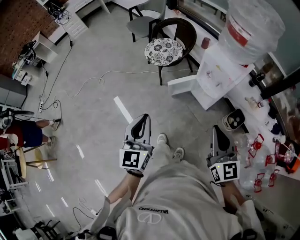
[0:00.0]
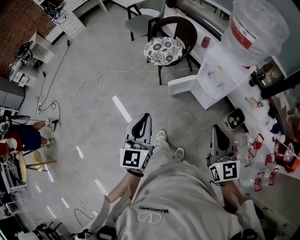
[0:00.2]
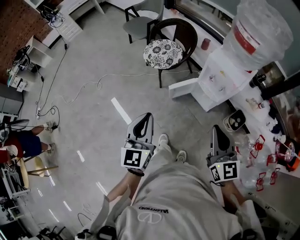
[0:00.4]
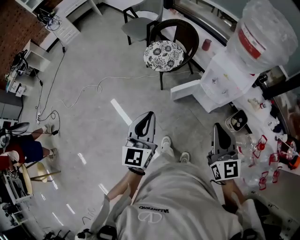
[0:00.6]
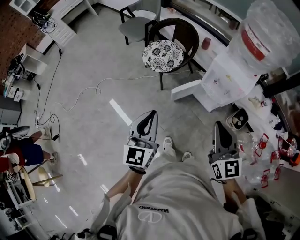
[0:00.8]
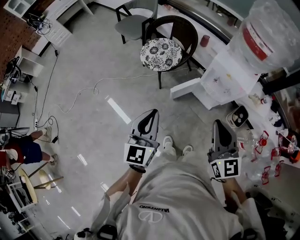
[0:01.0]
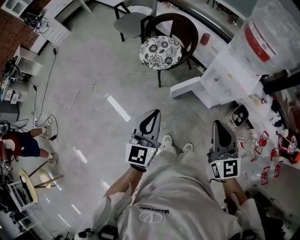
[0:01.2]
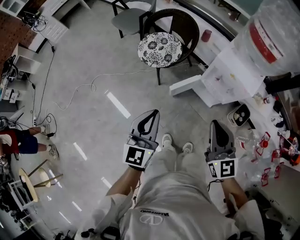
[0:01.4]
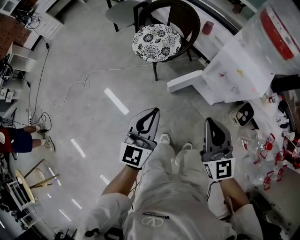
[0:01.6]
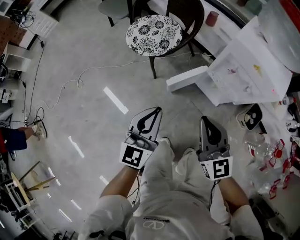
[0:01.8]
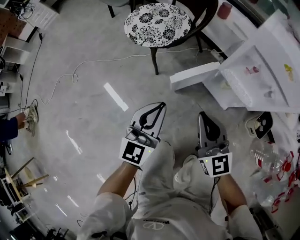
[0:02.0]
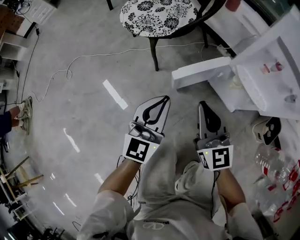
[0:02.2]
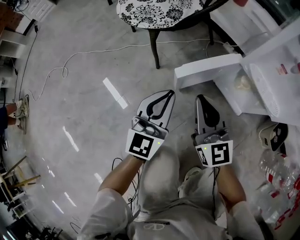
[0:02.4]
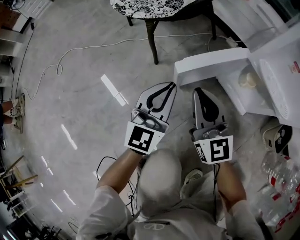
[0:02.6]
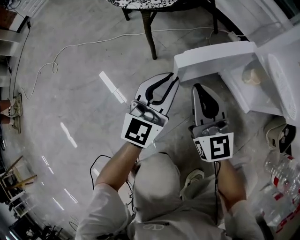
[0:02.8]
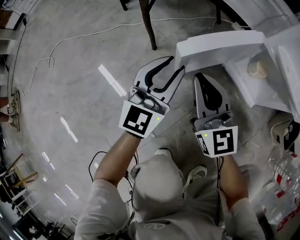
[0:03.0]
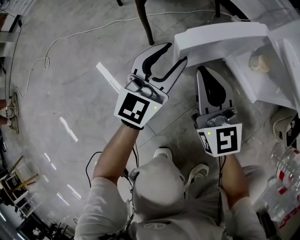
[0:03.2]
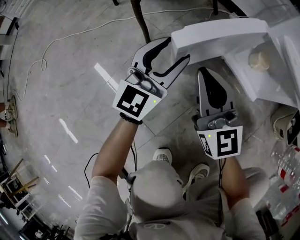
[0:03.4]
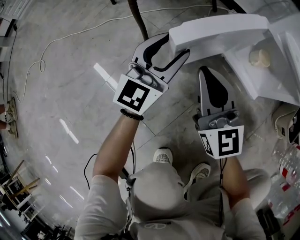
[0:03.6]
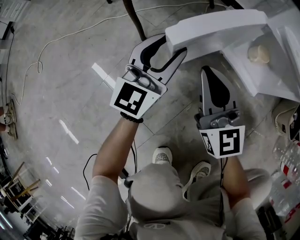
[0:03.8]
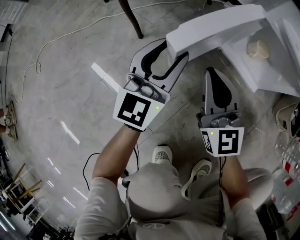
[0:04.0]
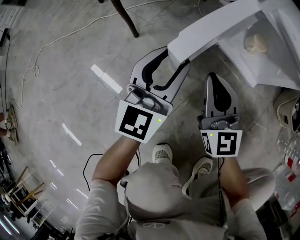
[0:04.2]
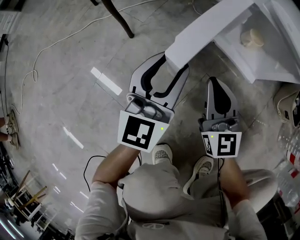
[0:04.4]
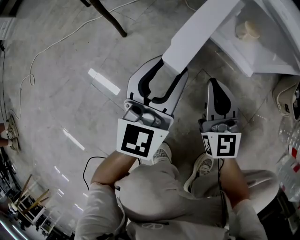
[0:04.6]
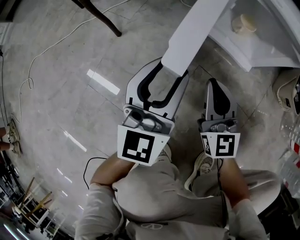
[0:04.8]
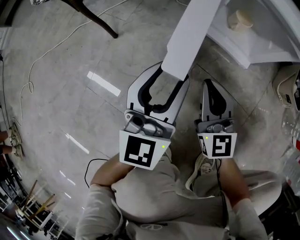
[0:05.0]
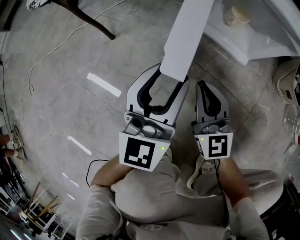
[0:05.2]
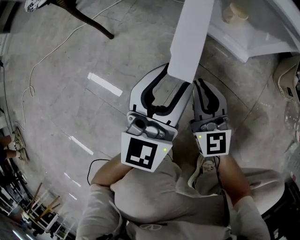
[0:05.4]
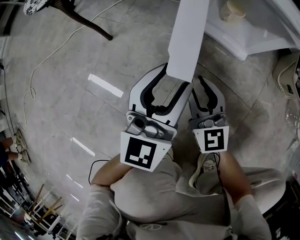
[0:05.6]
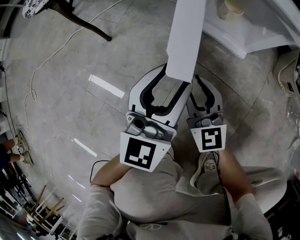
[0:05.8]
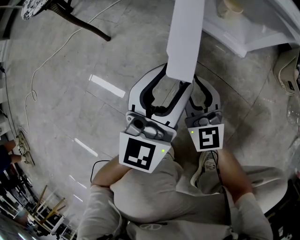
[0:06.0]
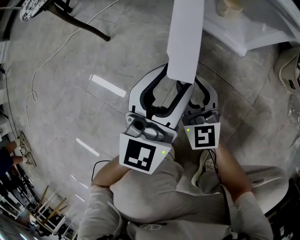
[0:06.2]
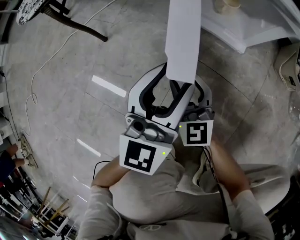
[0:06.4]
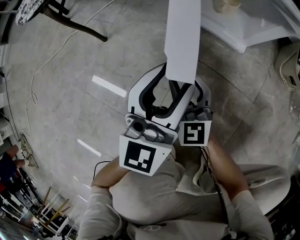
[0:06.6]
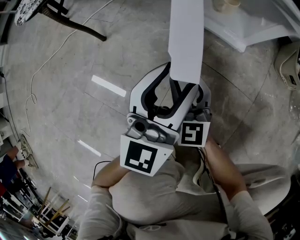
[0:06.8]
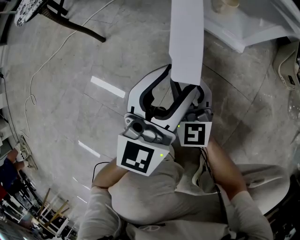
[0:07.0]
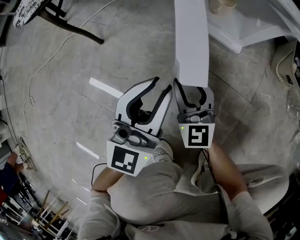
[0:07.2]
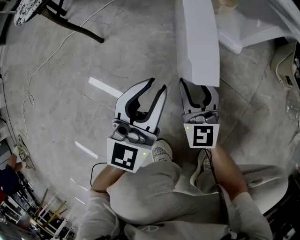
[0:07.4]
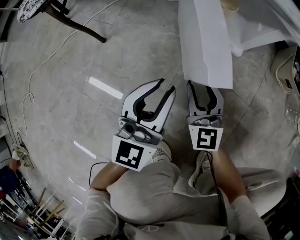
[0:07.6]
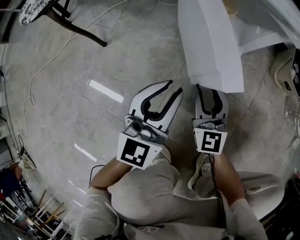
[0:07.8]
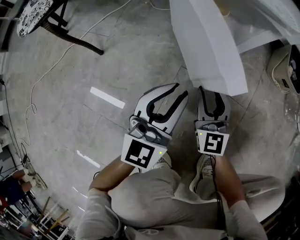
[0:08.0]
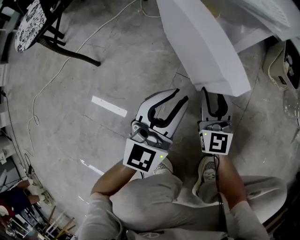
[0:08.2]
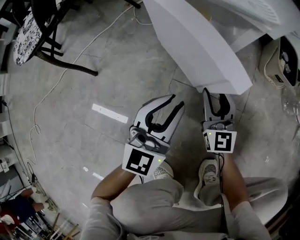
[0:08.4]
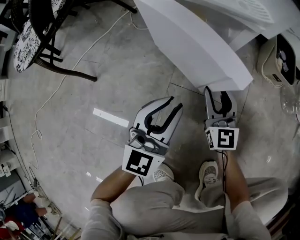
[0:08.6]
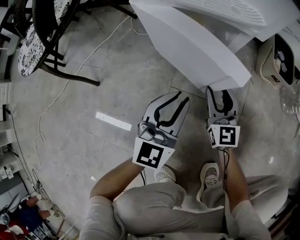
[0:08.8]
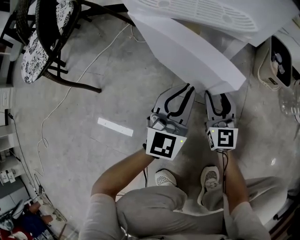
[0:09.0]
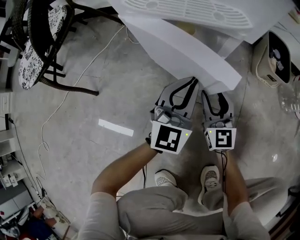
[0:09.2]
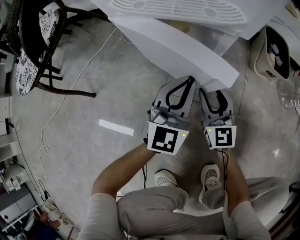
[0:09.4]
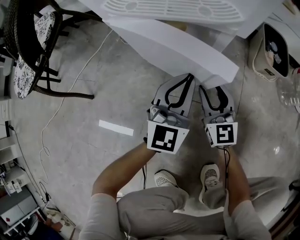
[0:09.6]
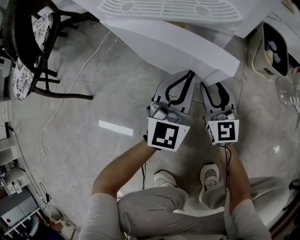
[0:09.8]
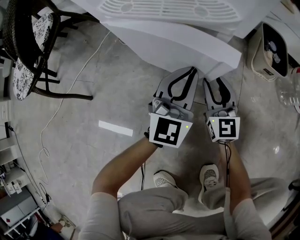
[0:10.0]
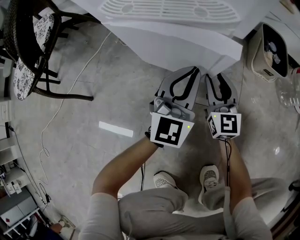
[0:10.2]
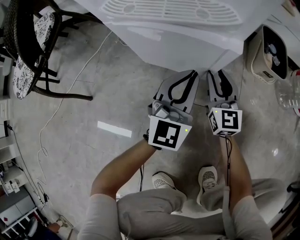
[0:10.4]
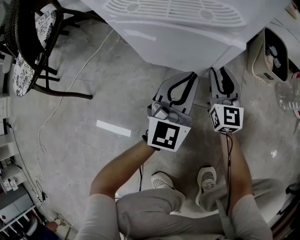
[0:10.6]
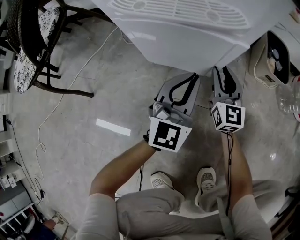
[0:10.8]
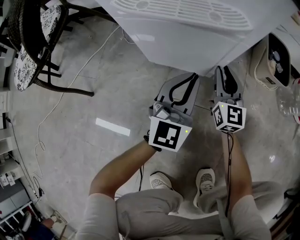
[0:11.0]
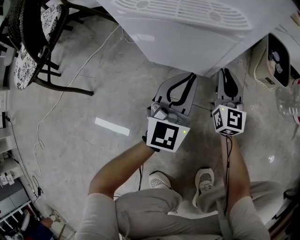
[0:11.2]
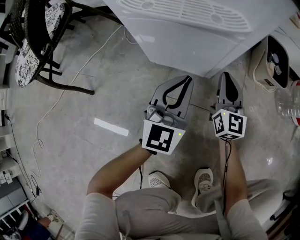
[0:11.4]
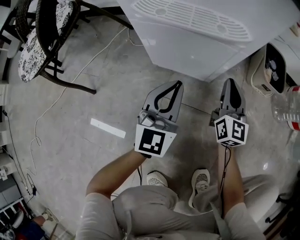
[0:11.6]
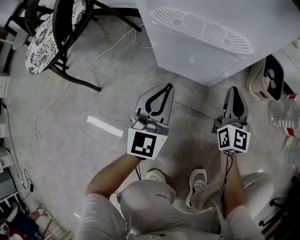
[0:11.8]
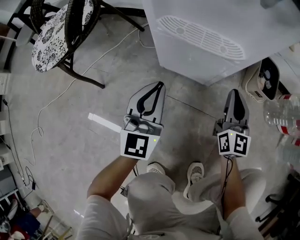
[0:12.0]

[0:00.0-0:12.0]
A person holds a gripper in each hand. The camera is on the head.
0:00.0 to 0:01.6: The left gripper shifts roughly 25 cm forward and downward, and changes its angle by about 20 degrees. Meanwhile the right gripper is displaced forward, downward and to the left by roughly 25 cm.
0:01.6 to 0:03.0: Both grippers move downward, about 60 cm. The left gripper opens its fingers.
0:03.0 to 0:04.4: The left gripper travels to the right by roughly 5 cm, while the right gripper moves to the right and downward, roughly 15 cm.
0:04.4 to 0:06.0: The right gripper shifts approximately 5 cm downward, and opens its fingers. The left gripper is displaced to the right by approximately 10 cm.
0:06.0 to 0:07.6: The left gripper closes its fingers.
0:07.6 to 0:09.0: The left gripper shifts some 15 cm forward and to the right, while the right gripper shifts approximately 15 cm to the right and forward.
0:09.0 to 0:10.4: The right gripper travels forward by about 5 cm; the left gripper heads forward and to the right, covering roughly 5 cm.
0:10.4 to 0:12.0: The left gripper goes some 20 cm to the left, upward and backward; the right gripper shifts roughly 15 cm upward, and closes its fingers.

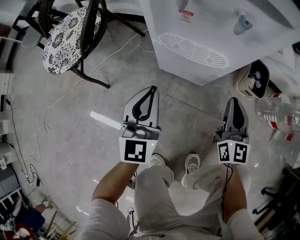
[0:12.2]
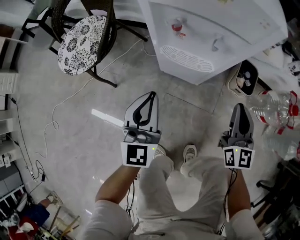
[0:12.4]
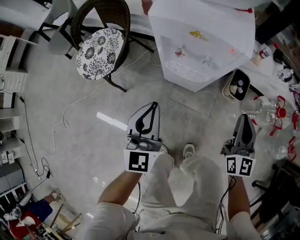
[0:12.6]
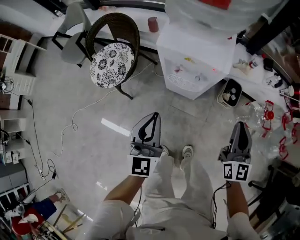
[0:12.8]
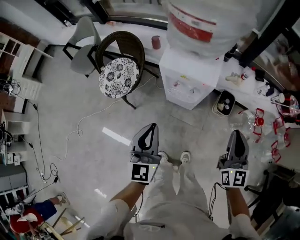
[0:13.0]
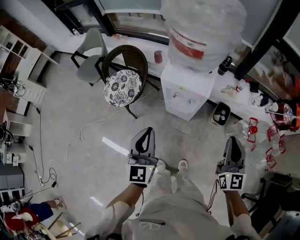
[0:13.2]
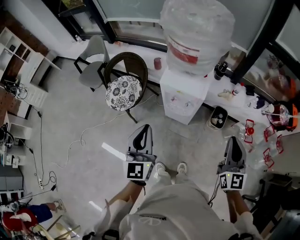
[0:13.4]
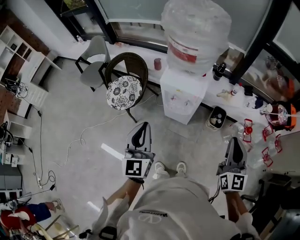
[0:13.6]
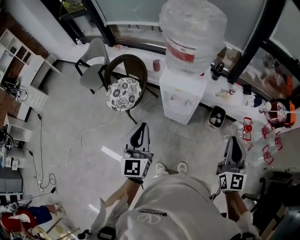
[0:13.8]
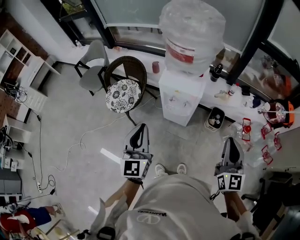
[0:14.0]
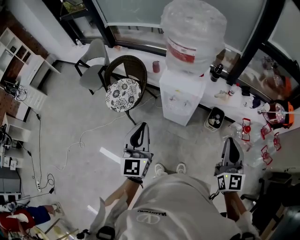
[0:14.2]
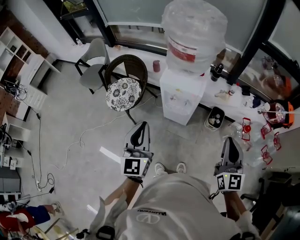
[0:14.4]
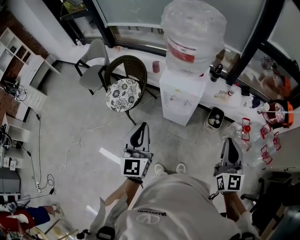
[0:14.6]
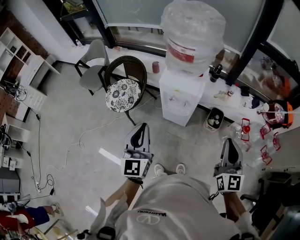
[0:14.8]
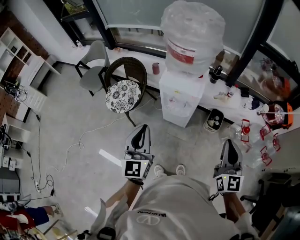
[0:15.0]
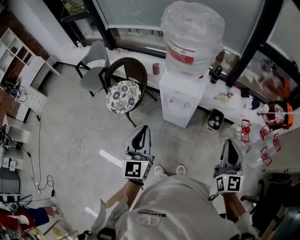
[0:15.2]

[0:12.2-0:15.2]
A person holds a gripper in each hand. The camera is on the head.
0:12.2 to 0:13.8: The two grippers go some 60 cm upward.
0:13.8 to 0:15.2: The grippers stay close to where they were, moving slightly.

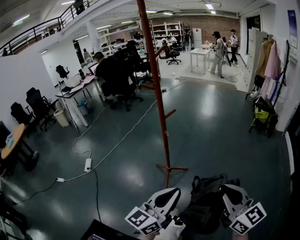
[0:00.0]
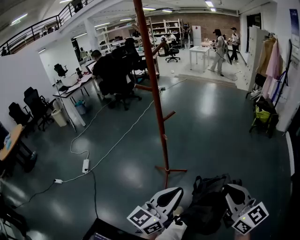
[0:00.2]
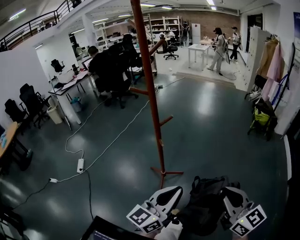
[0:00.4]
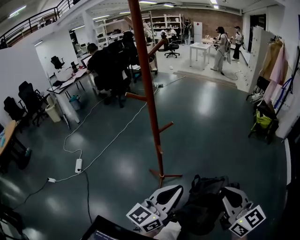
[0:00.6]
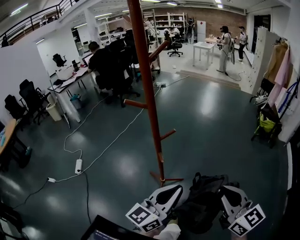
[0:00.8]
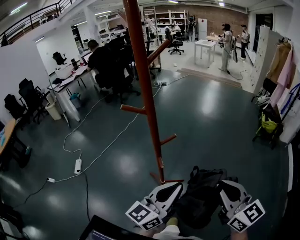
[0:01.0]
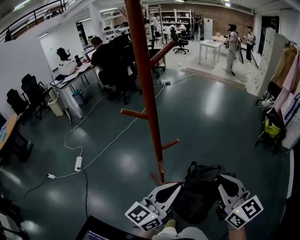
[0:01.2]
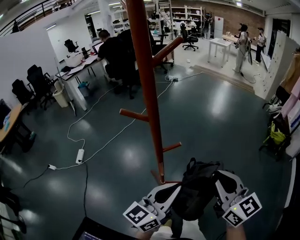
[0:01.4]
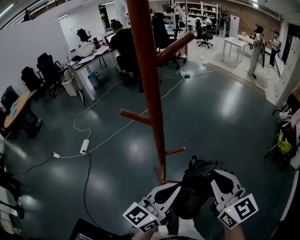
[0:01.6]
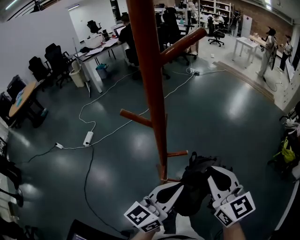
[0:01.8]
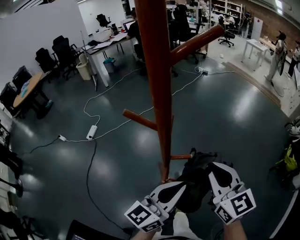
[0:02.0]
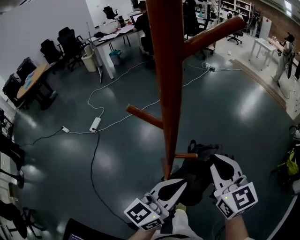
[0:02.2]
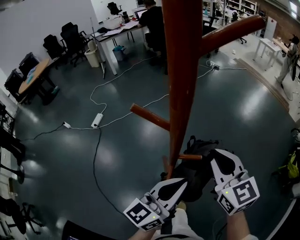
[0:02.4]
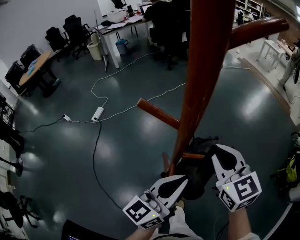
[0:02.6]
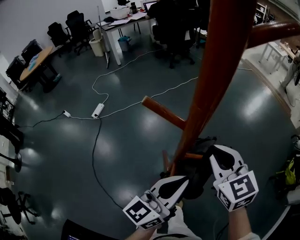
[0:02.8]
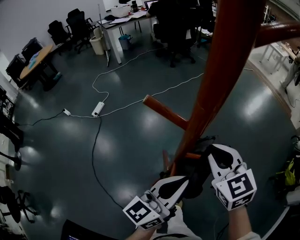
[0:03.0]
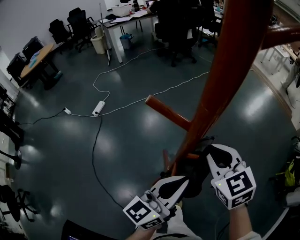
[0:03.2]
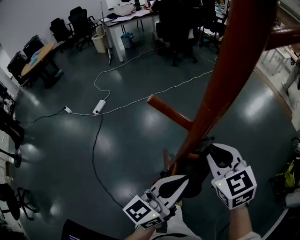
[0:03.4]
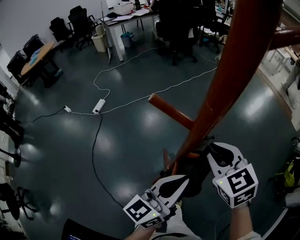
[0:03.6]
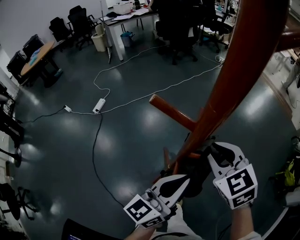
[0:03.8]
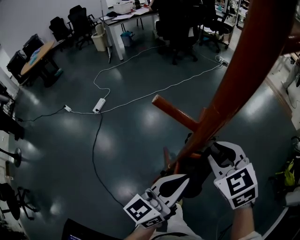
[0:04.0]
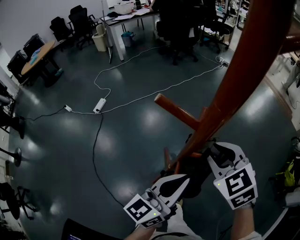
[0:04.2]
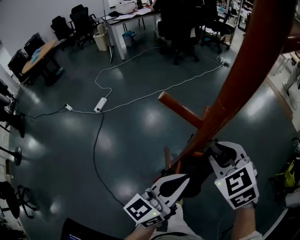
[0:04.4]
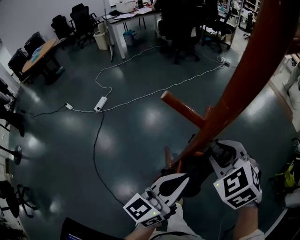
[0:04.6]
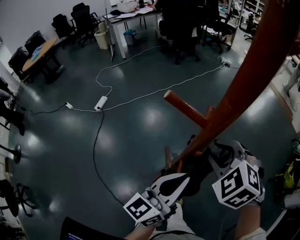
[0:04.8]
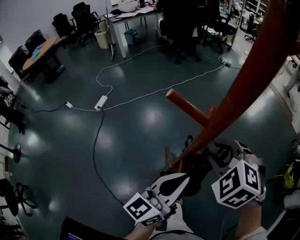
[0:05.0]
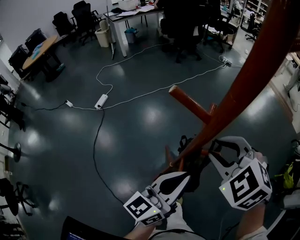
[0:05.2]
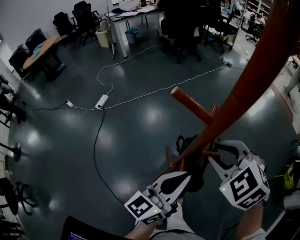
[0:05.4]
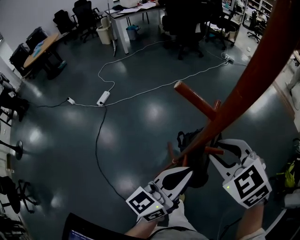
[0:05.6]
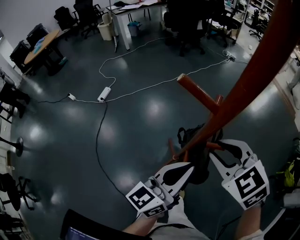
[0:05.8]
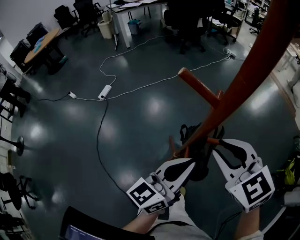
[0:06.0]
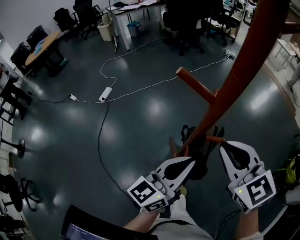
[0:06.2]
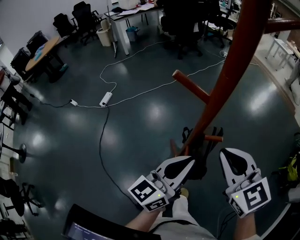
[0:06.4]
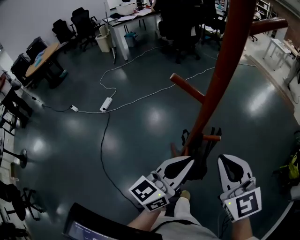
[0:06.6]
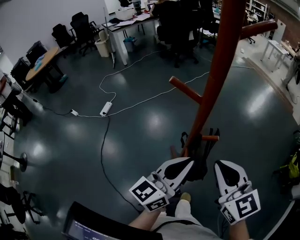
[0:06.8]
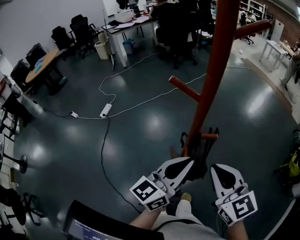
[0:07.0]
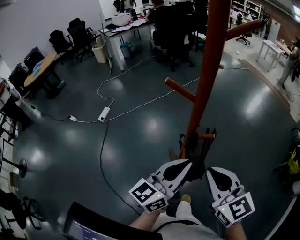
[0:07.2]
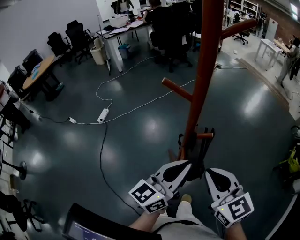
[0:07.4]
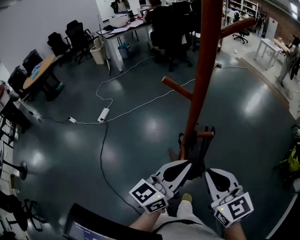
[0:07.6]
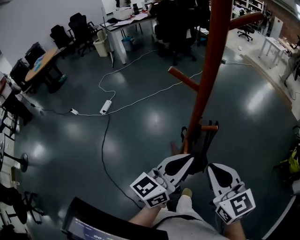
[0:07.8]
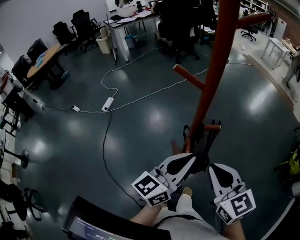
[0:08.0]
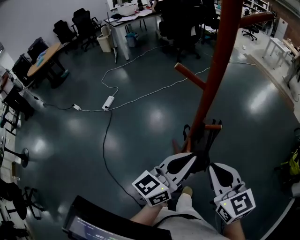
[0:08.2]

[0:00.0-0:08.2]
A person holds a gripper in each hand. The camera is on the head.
0:00.0 to 0:01.6: The pair of grippers is taken forward, roughly 40 cm.
0:01.6 to 0:03.2: The right gripper travels forward, to the left and downward by approximately 20 cm, and turns by some 30 degrees; the left gripper goes approximately 10 cm forward.
0:03.2 to 0:05.0: The right gripper swivels about 40 degrees.
0:05.0 to 0:06.6: The right gripper moves backward and upward, roughly 10 cm, points its fingers roughly 40 degrees further upward, and closes up.
0:06.6 to 0:08.2: The right gripper shifts approximately 5 cm backward.
